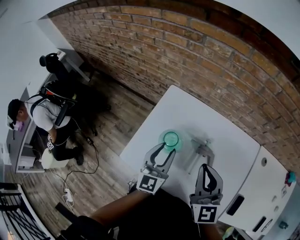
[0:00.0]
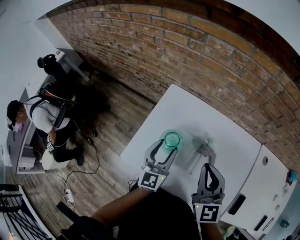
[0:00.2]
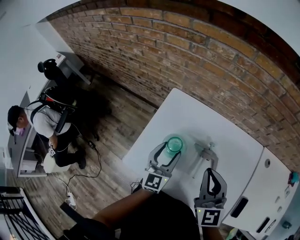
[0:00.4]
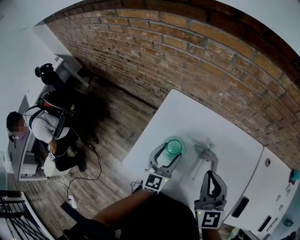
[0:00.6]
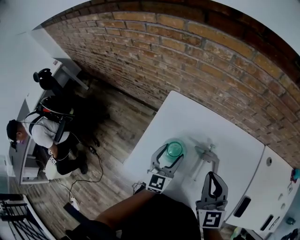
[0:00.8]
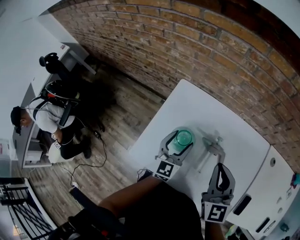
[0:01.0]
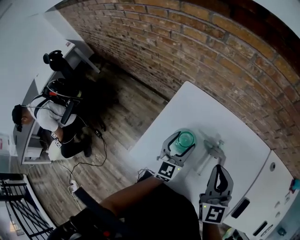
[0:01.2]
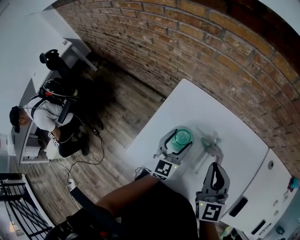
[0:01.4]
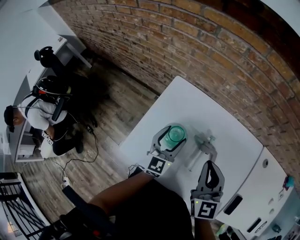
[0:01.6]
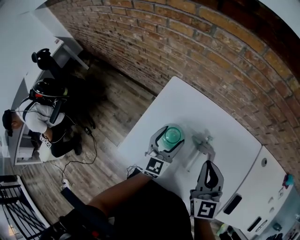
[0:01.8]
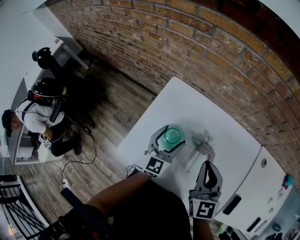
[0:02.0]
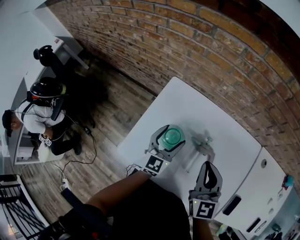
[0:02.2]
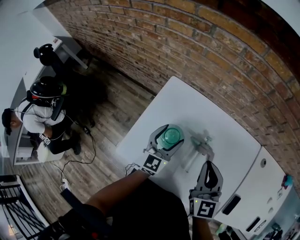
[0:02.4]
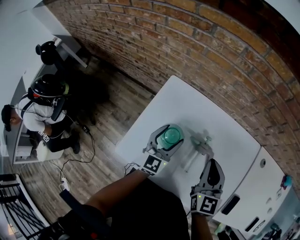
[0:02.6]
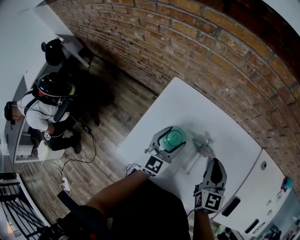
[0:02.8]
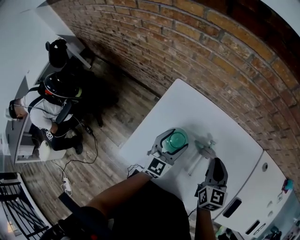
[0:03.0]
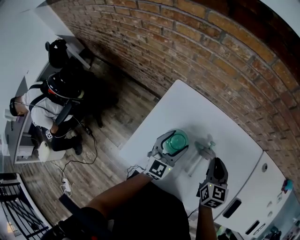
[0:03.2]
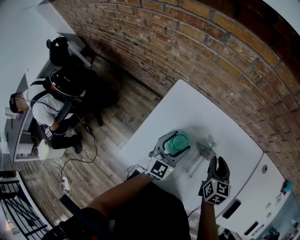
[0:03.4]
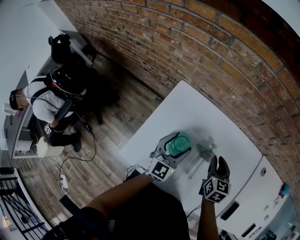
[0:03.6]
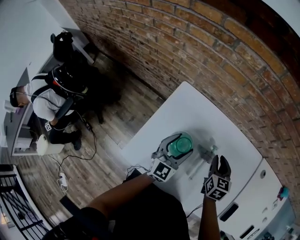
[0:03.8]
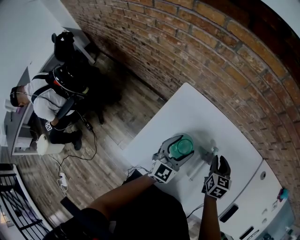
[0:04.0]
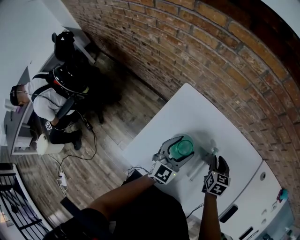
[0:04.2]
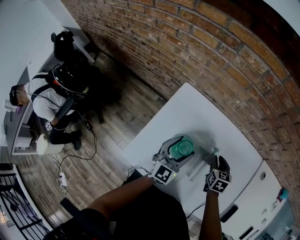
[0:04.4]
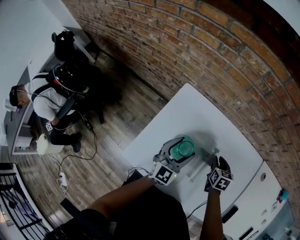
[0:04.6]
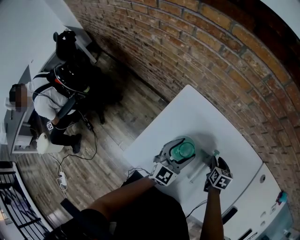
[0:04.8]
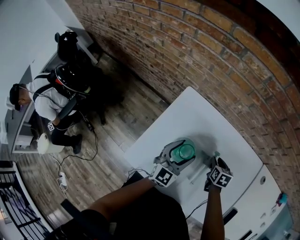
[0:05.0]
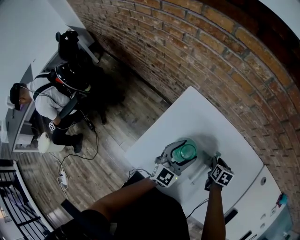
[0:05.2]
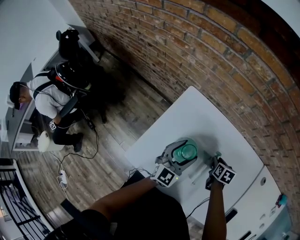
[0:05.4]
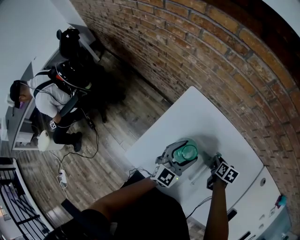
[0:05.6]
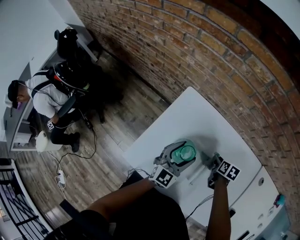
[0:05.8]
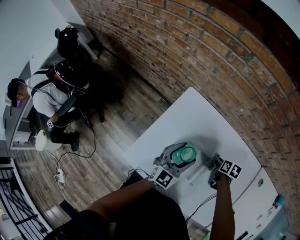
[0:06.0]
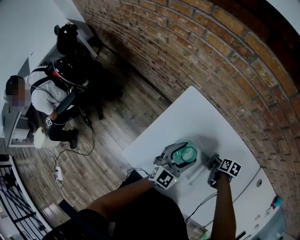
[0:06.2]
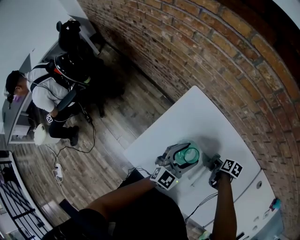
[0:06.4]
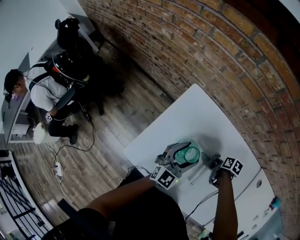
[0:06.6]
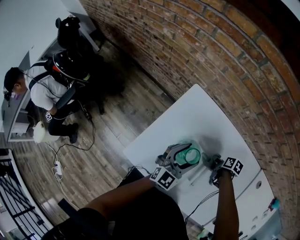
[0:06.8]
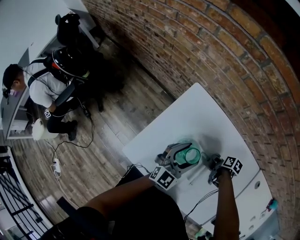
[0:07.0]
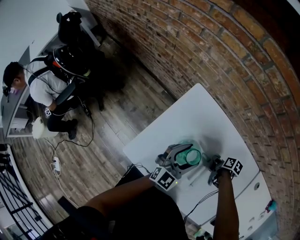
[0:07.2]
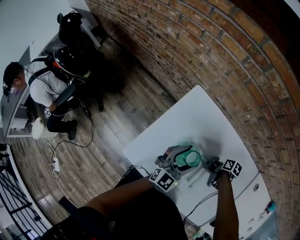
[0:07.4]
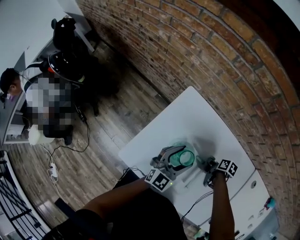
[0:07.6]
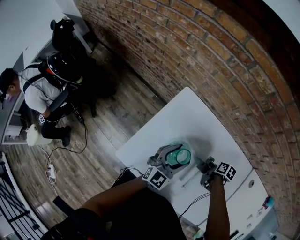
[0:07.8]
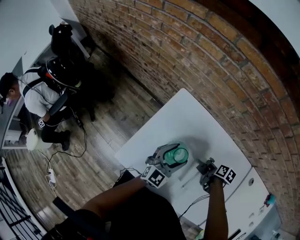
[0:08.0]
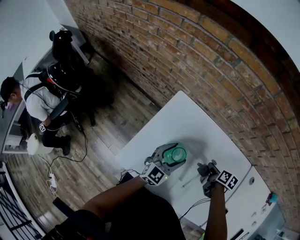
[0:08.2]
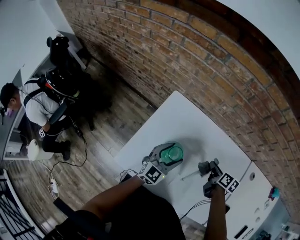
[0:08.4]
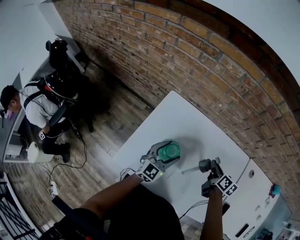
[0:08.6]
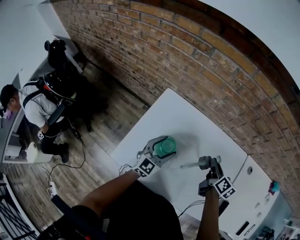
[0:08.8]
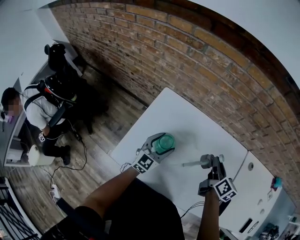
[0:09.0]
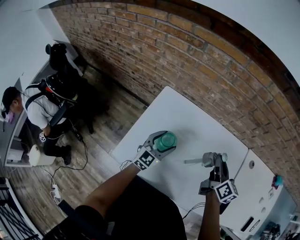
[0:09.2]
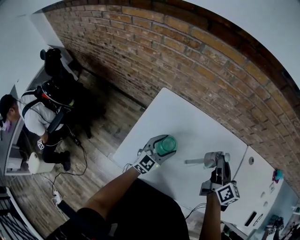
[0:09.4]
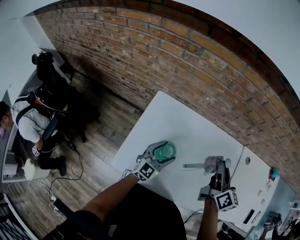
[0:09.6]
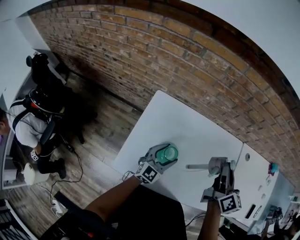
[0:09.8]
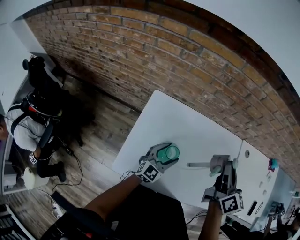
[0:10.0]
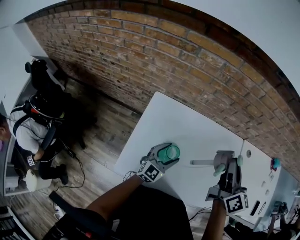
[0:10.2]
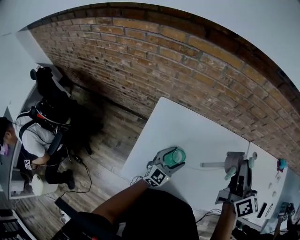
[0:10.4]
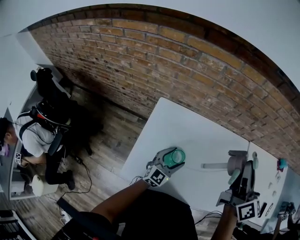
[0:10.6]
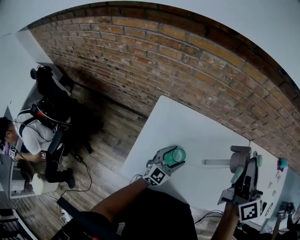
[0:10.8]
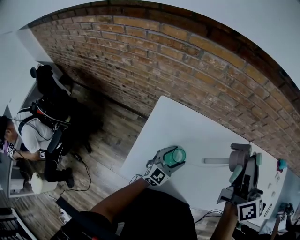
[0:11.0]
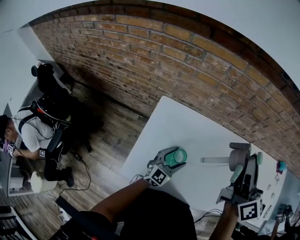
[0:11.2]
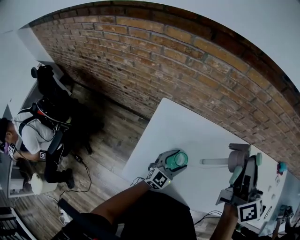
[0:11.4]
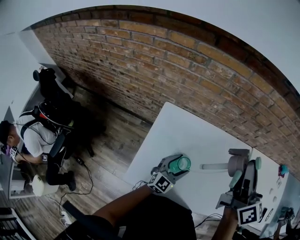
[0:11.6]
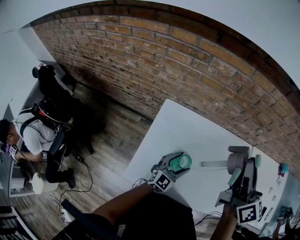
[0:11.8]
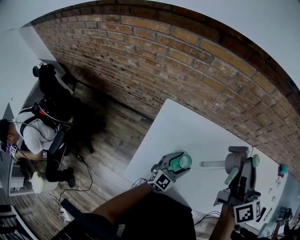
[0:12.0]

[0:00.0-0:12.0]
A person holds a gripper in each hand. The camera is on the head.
0:00.0 to 0:01.6: The left gripper goes approximately 10 cm downward and forward, and opens its fingers.
0:01.6 to 0:03.0: The right gripper goes approximately 10 cm downward and to the right, and changes its angle by some 20 degrees.
0:03.0 to 0:04.4: The right gripper goes roughly 15 cm downward, and turns by approximately 20 degrees.
0:04.4 to 0:06.0: The right gripper moves downward, approximately 5 cm, and rotates approximately 30 degrees.
0:06.0 to 0:07.6: The grippers make only small movements.
0:07.6 to 0:09.0: The right gripper travels upward by some 25 cm, and tilts its fingers approximately 40 degrees upward.
0:09.0 to 0:10.4: The right gripper heads upward, covering approximately 20 cm, and changes its angle by about 30 degrees.
0:10.4 to 0:12.0: The right gripper heads to the left, covering roughly 10 cm.

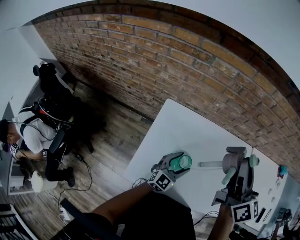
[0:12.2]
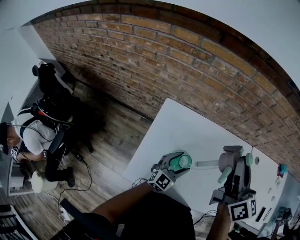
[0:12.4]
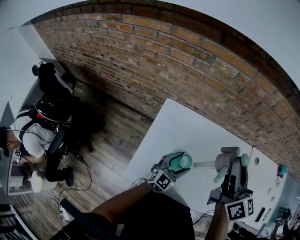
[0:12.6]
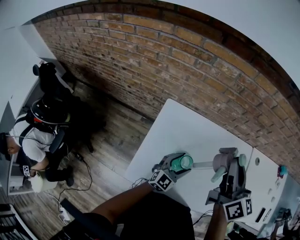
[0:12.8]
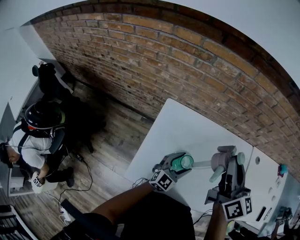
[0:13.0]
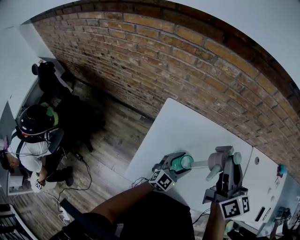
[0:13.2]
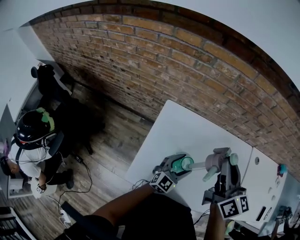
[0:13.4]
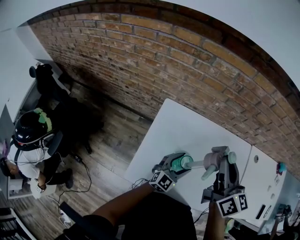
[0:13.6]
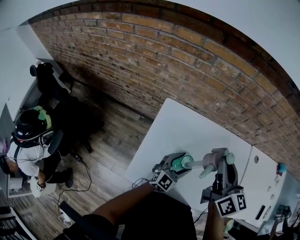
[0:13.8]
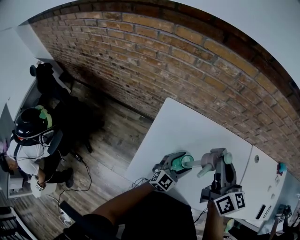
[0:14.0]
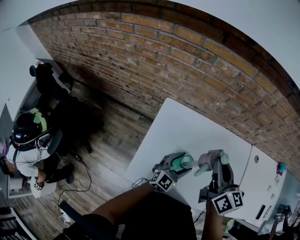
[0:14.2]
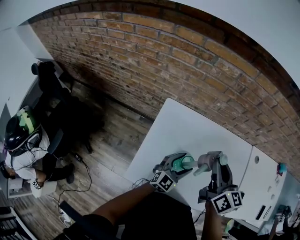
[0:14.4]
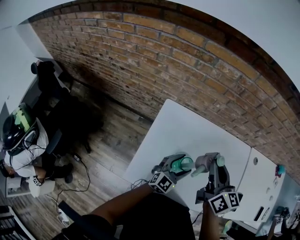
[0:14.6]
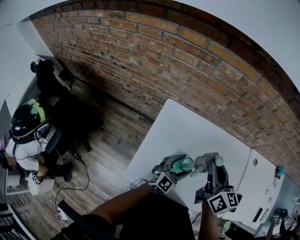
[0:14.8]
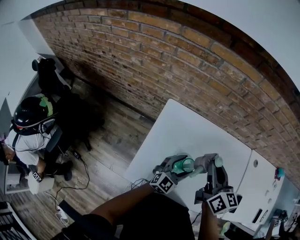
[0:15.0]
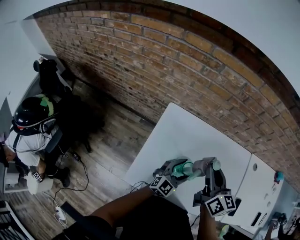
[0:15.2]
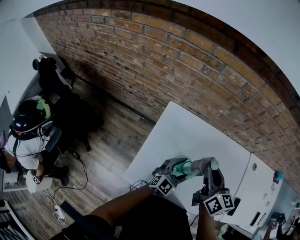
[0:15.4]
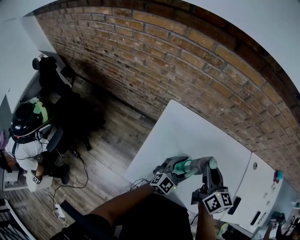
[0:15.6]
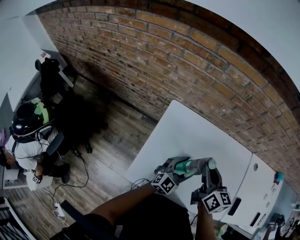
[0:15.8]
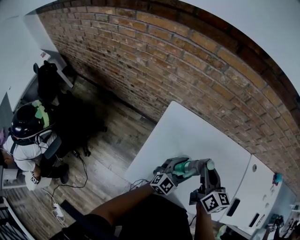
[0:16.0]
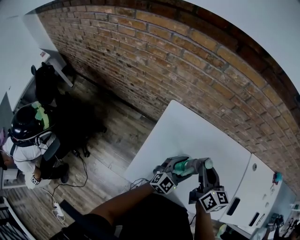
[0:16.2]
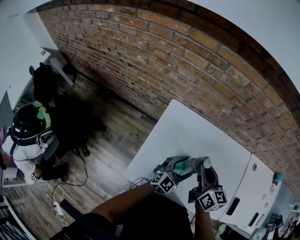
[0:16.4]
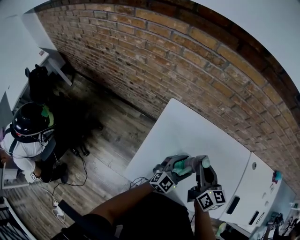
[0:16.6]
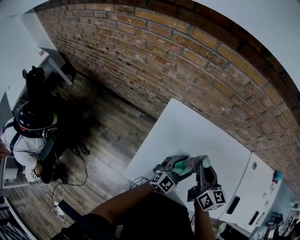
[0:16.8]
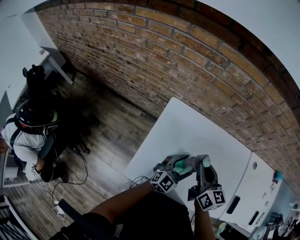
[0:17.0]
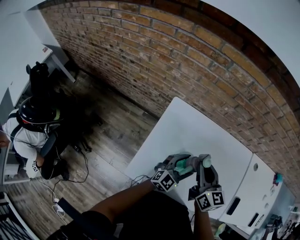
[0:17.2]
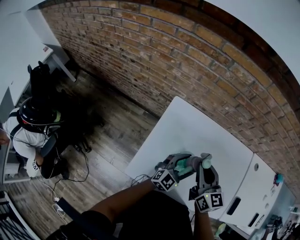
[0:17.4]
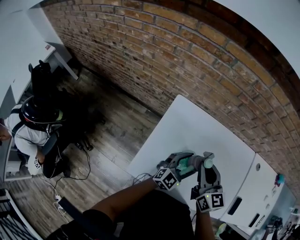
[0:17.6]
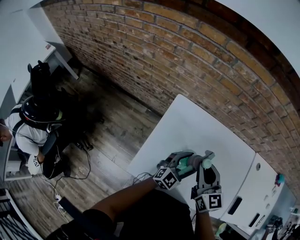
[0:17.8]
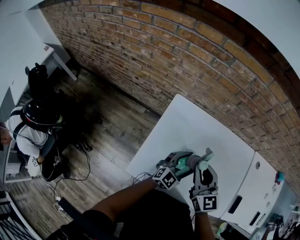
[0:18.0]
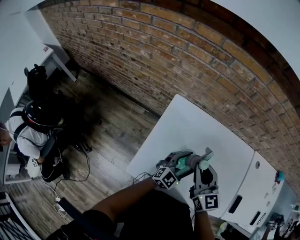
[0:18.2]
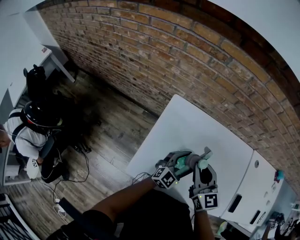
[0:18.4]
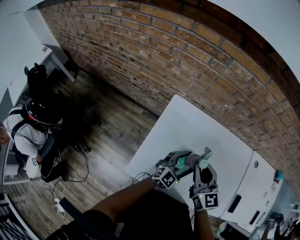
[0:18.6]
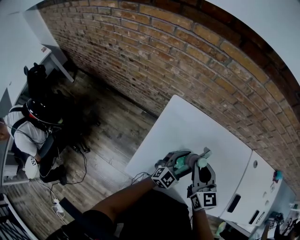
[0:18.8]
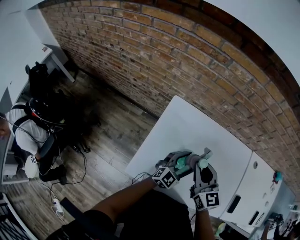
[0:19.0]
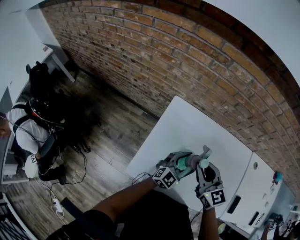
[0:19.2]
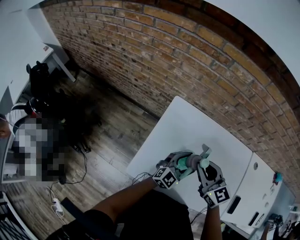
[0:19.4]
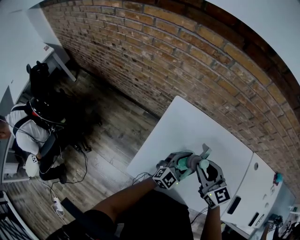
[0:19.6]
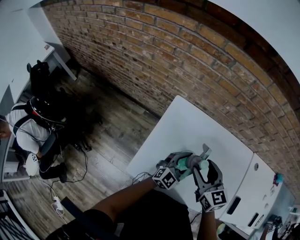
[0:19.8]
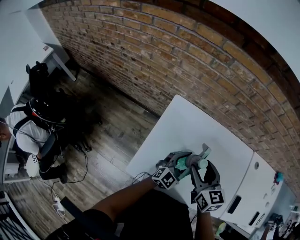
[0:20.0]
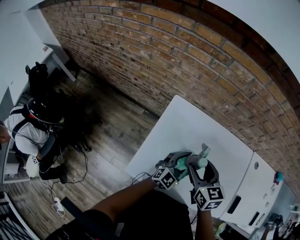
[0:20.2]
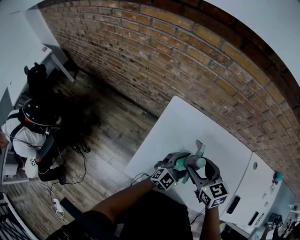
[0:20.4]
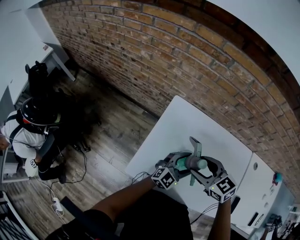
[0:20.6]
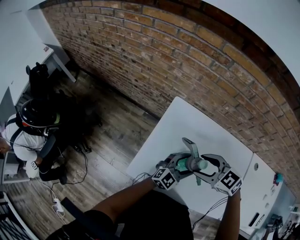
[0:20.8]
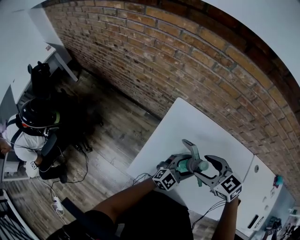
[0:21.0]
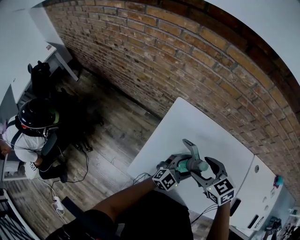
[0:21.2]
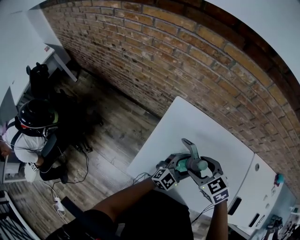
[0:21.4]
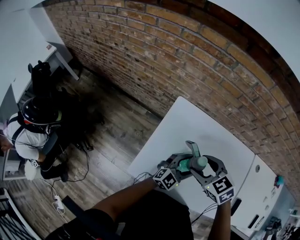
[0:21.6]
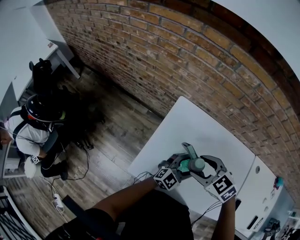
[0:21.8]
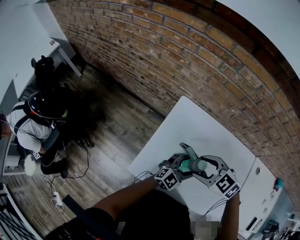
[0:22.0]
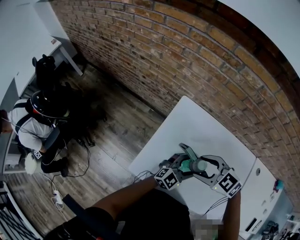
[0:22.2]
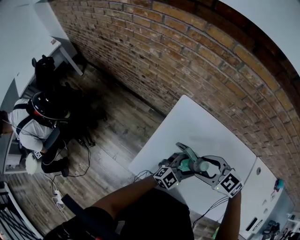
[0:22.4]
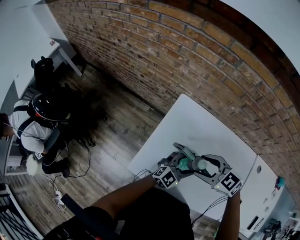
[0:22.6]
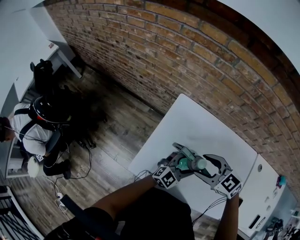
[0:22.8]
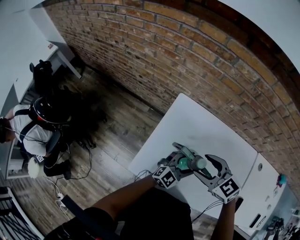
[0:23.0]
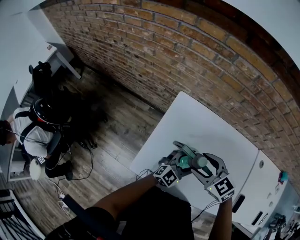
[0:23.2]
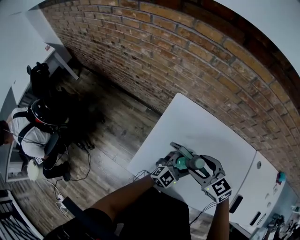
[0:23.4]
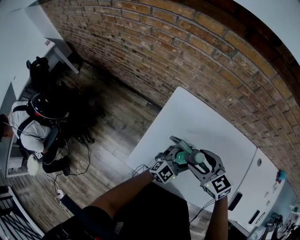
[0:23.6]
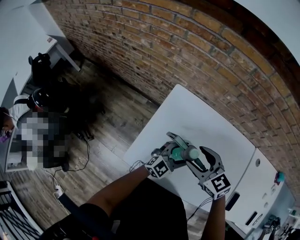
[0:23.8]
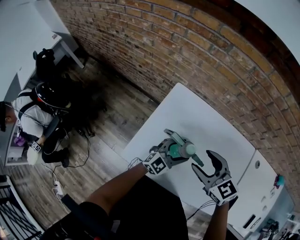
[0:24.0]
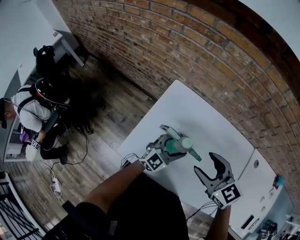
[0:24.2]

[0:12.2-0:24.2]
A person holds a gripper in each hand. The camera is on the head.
0:12.2 to 0:13.8: The right gripper is displaced downward and to the left by some 10 cm.
0:13.8 to 0:15.2: The right gripper heads downward, covering about 5 cm.
0:15.2 to 0:16.6: The right gripper goes approximately 5 cm downward.
0:16.6 to 0:18.2: The right gripper swivels about 20 degrees.
0:18.2 to 0:19.8: The right gripper opens its fingers.
0:19.8 to 0:21.2: The right gripper rotates about 30 degrees.
0:21.2 to 0:22.6: The right gripper swivels about 20 degrees.
0:22.6 to 0:24.2: The right gripper changes place by roughly 10 cm, and rotates roughly 20 degrees.
